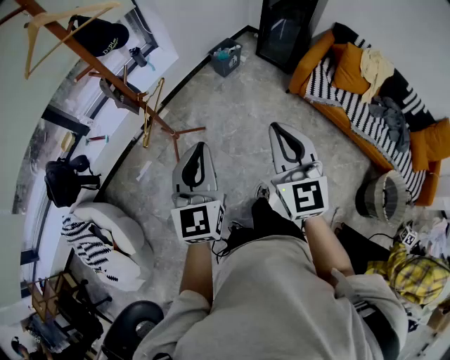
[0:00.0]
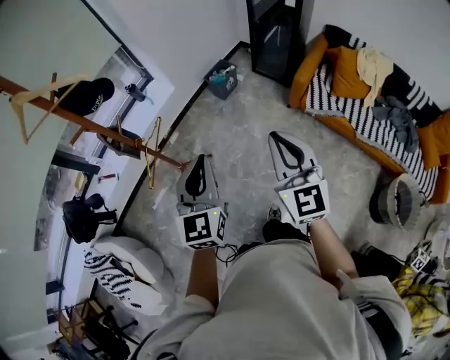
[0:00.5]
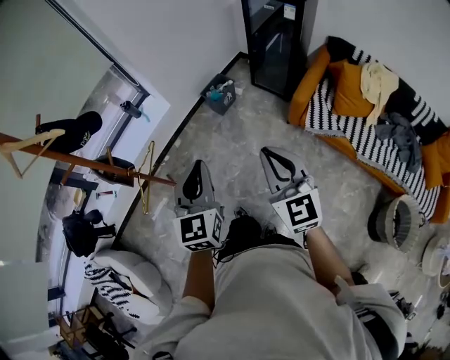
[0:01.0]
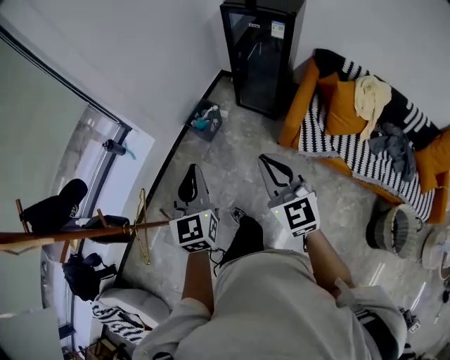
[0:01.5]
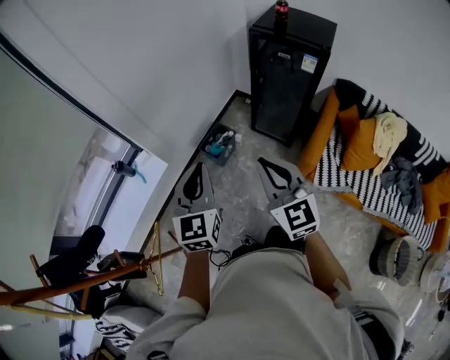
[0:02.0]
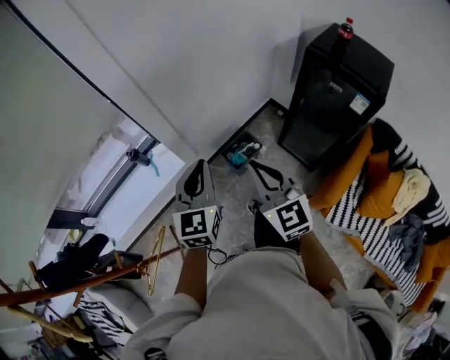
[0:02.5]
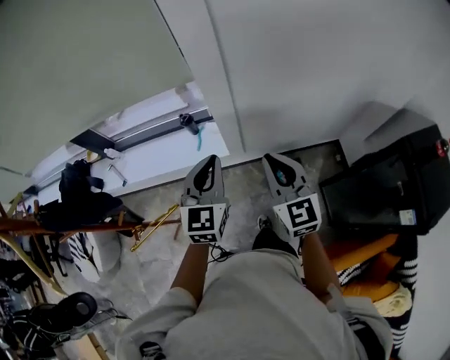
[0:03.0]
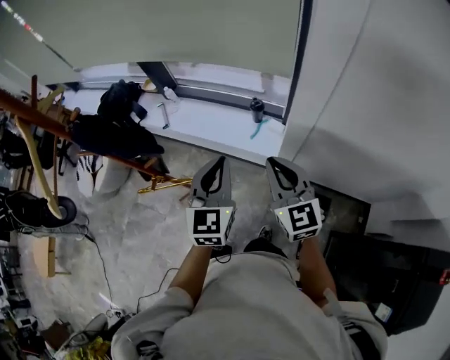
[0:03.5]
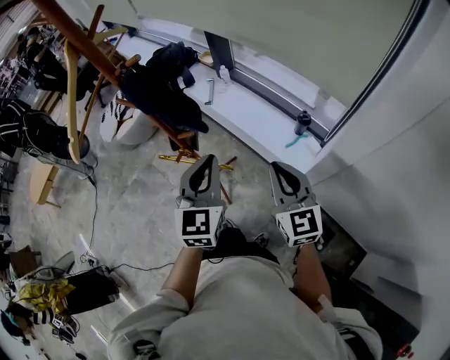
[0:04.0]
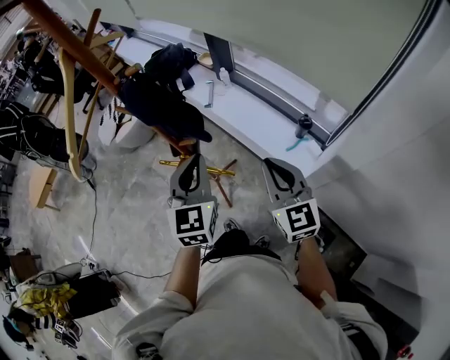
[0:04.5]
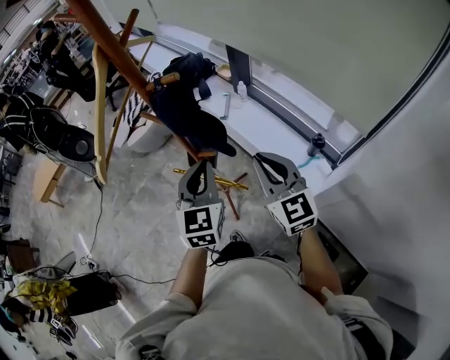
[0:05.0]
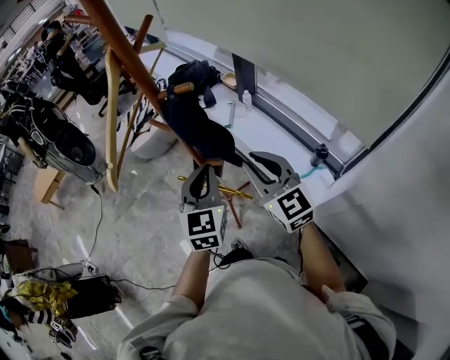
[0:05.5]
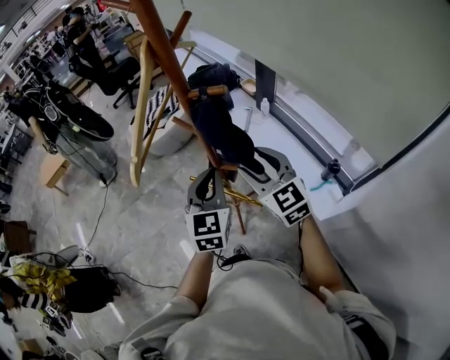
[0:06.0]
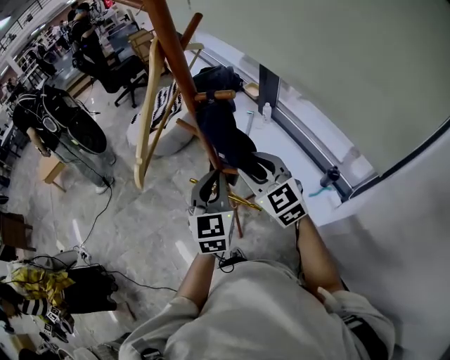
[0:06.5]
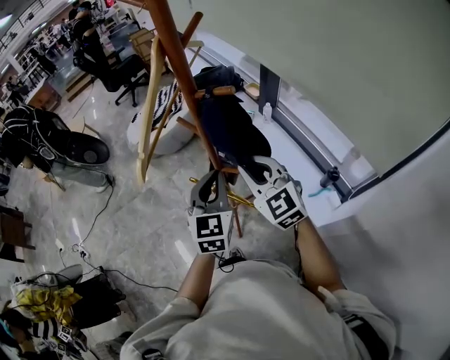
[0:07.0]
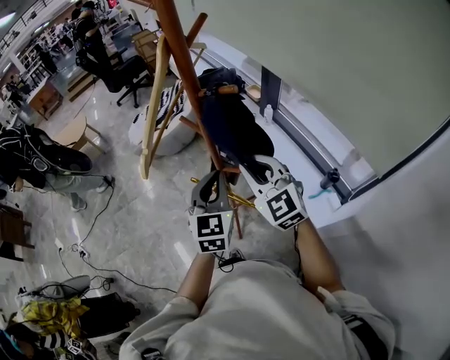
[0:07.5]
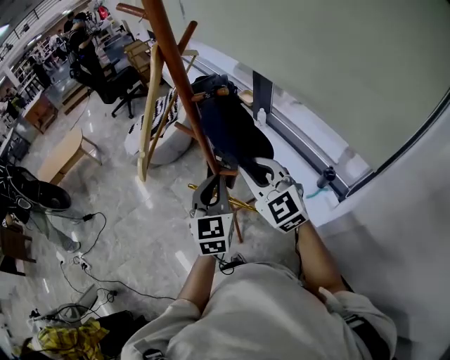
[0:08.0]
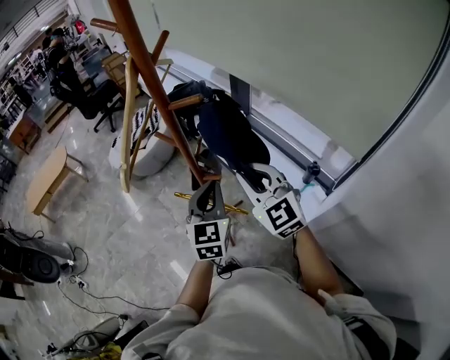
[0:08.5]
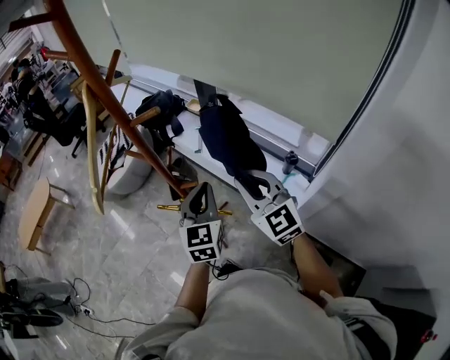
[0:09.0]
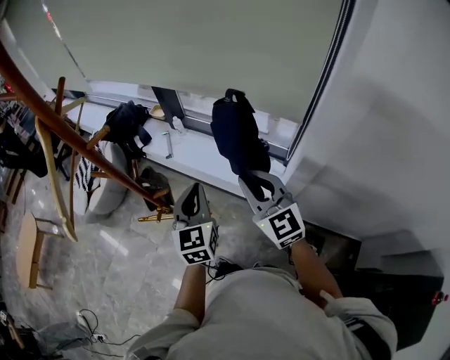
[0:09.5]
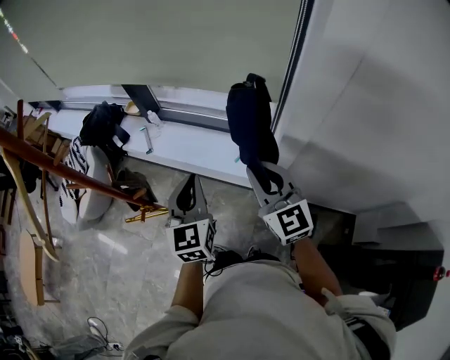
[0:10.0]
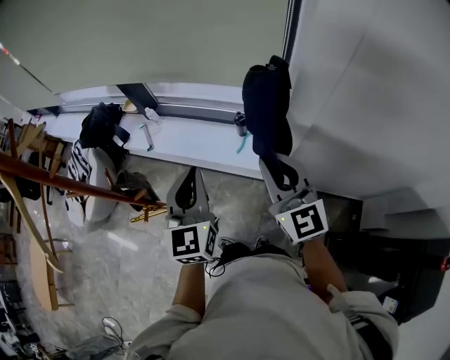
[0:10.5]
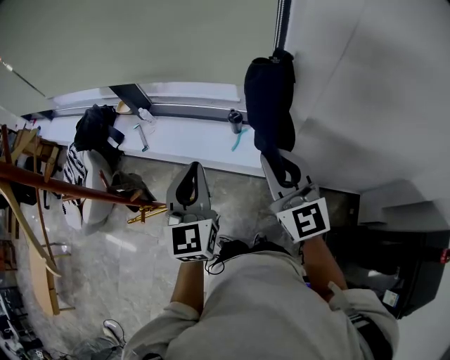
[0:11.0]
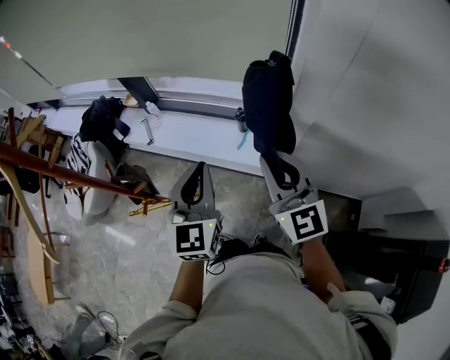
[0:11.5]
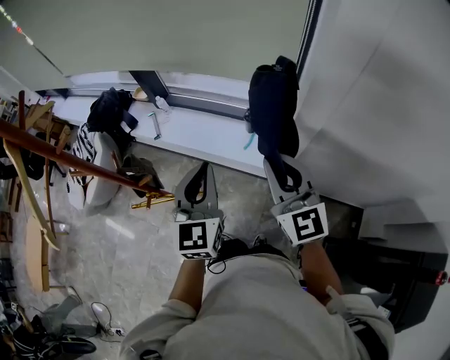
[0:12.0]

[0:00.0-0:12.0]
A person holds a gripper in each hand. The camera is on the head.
0:00.0 to 0:02.0: The pair of grippers is taken forward, some 60 cm.
0:02.0 to 0:04.0: The left gripper moves about 35 cm, and swivels roughly 90 degrees. Meanwhile the right gripper moves some 50 cm, and changes its angle by some 90 degrees.
0:04.0 to 0:06.0: The right gripper travels to the left, forward and upward by roughly 25 cm, changes its angle by about 30 degrees, and opens. Meanwhile the left gripper goes approximately 15 cm to the left and forward.
0:06.0 to 0:08.0: The right gripper closes up.
0:08.0 to 0:10.0: The right gripper moves roughly 30 cm, and changes its angle by approximately 50 degrees. The left gripper changes place by about 25 cm, and rotates about 30 degrees.
0:10.0 to 0:12.0: The grippers stay close to where they were, moving slightly.

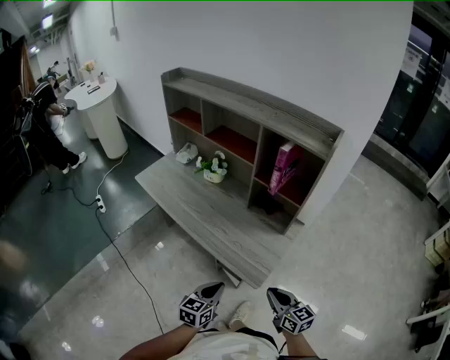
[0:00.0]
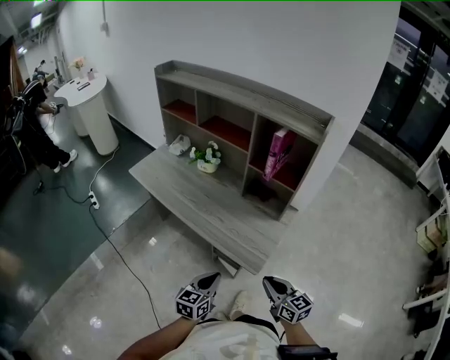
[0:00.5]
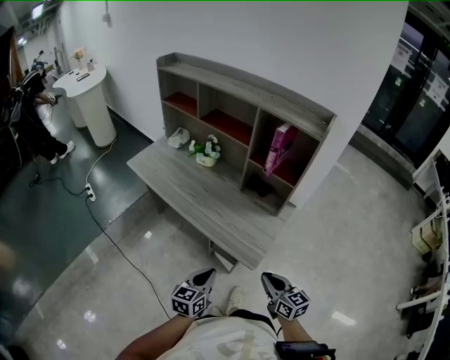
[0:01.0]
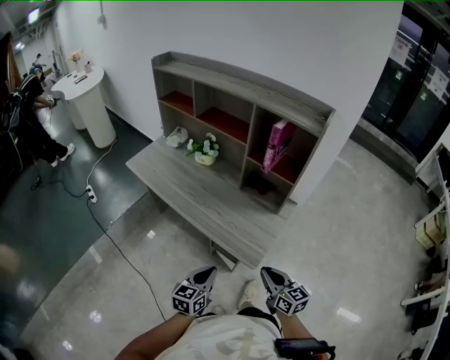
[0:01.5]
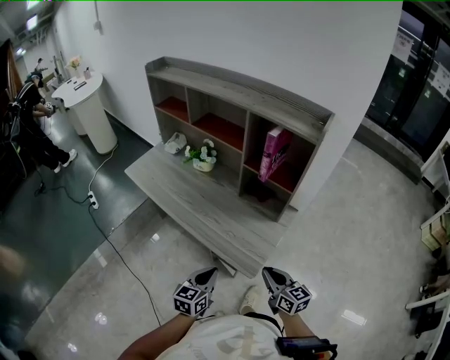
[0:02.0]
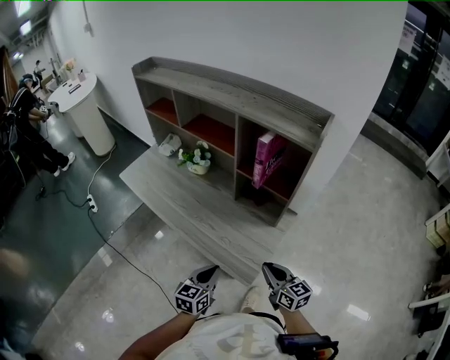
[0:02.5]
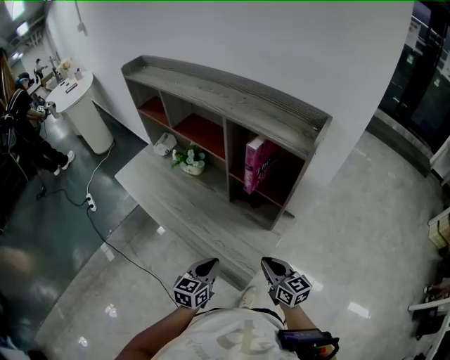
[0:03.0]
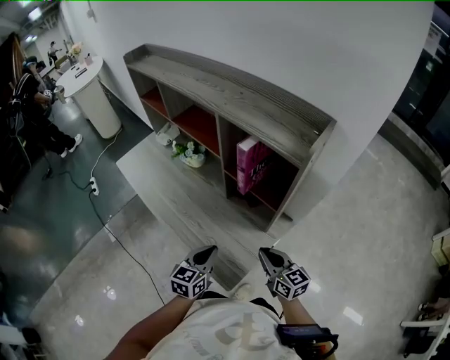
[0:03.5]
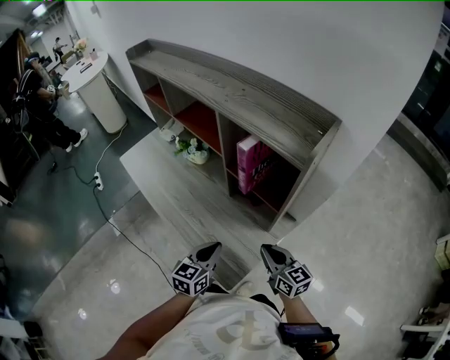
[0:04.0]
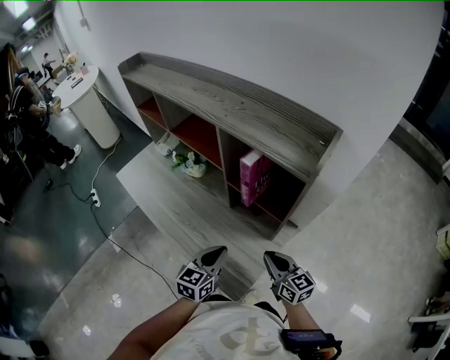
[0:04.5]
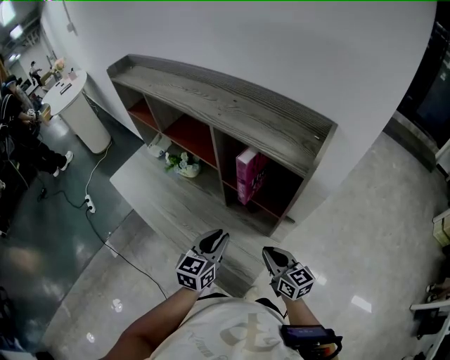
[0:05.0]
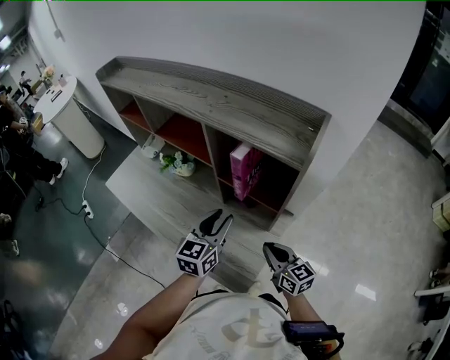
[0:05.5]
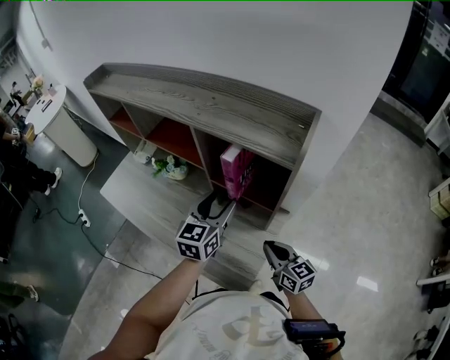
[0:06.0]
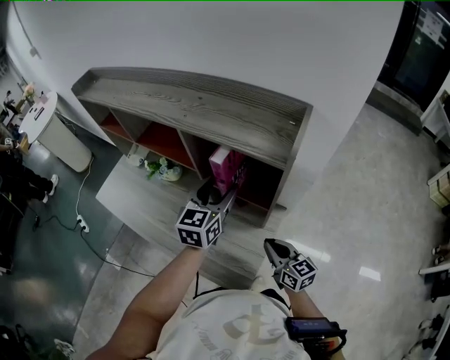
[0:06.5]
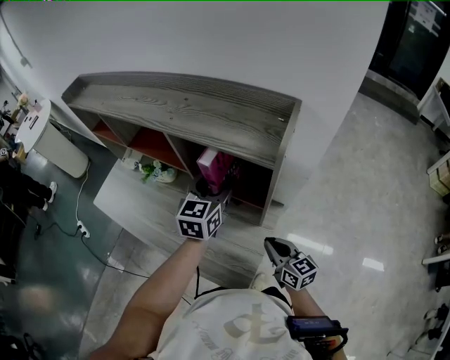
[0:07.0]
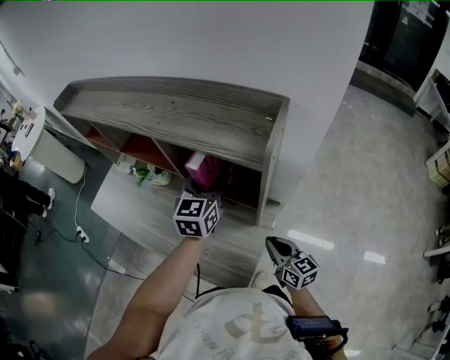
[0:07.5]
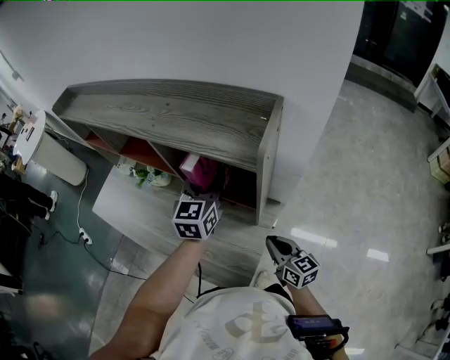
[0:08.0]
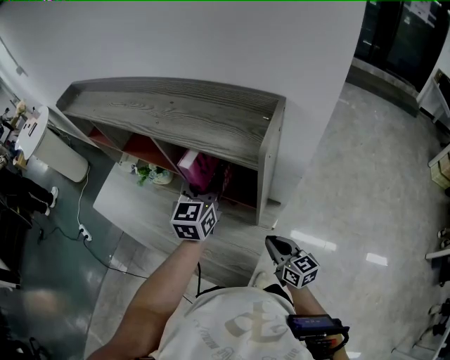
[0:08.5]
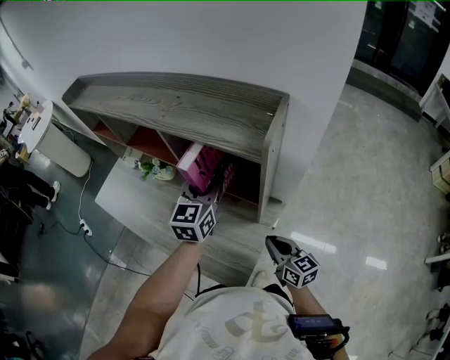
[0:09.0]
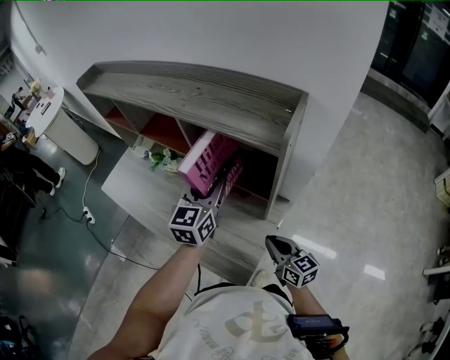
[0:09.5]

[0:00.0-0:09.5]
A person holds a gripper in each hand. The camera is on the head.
0:00.0 to 0:02.0: There are only small adjustments of the grippers.
0:02.0 to 0:04.0: The two grippers go roughly 20 cm forward and to the right.
0:04.0 to 0:05.5: The left gripper shifts about 15 cm forward and upward, and opens.
0:05.5 to 0:07.5: The right gripper is displaced to the right by roughly 5 cm, while the left gripper travels forward and to the right by approximately 15 cm.
0:07.5 to 0:09.5: The left gripper shifts some 10 cm to the left and backward.

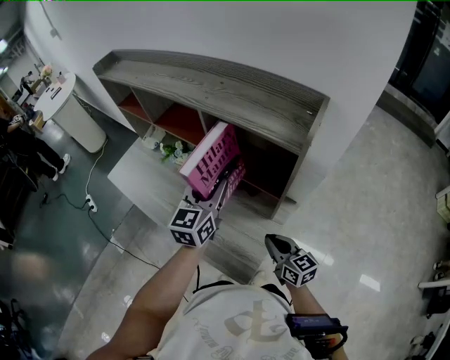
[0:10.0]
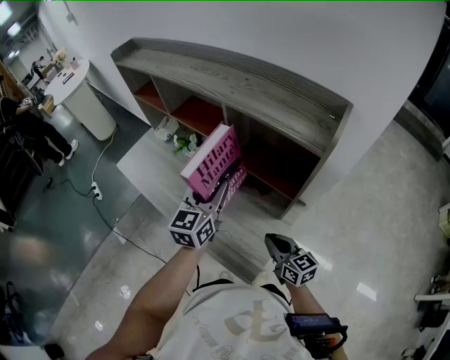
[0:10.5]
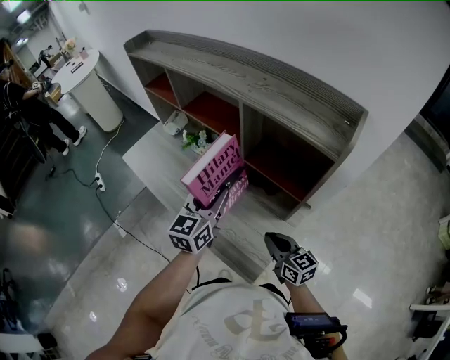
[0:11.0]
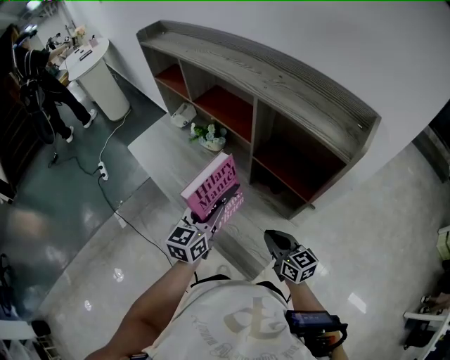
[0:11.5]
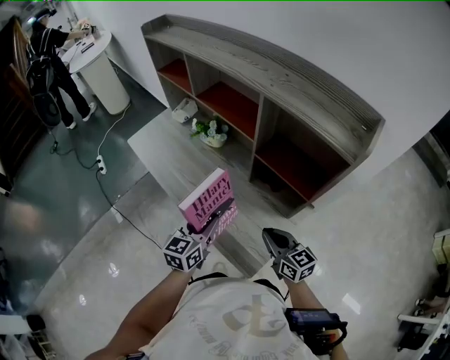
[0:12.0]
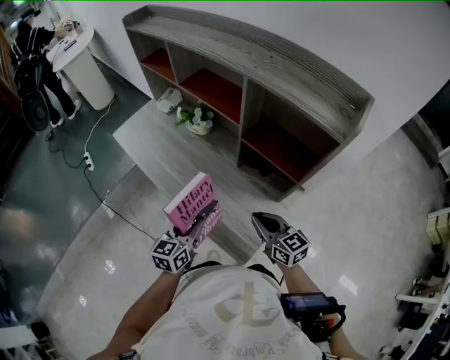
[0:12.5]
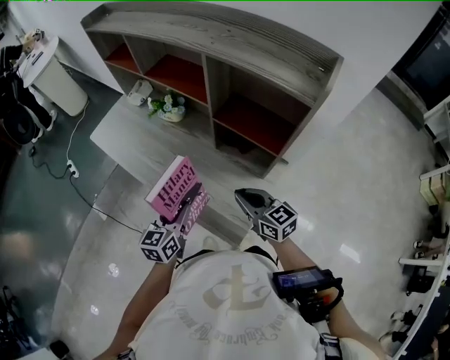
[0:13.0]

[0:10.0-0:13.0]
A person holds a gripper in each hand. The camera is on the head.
0:10.0 to 0:11.5: The left gripper moves to the left, downward and backward, approximately 15 cm, while the right gripper goes roughly 10 cm to the left.
0:11.5 to 0:13.0: The left gripper heads downward and backward, covering roughly 10 cm.

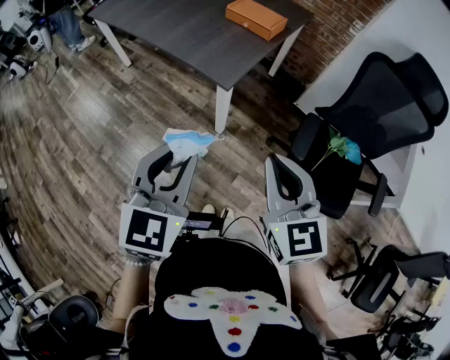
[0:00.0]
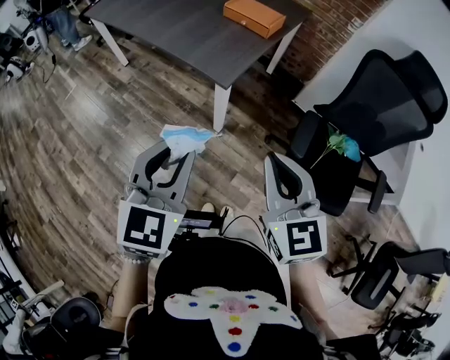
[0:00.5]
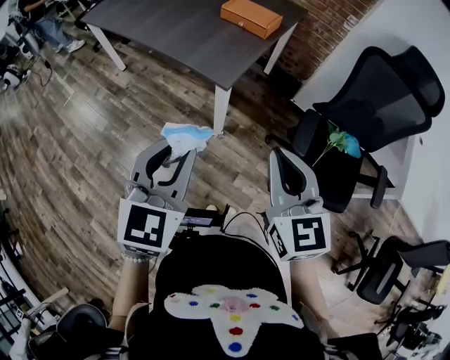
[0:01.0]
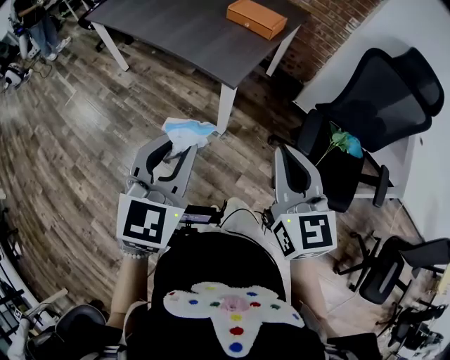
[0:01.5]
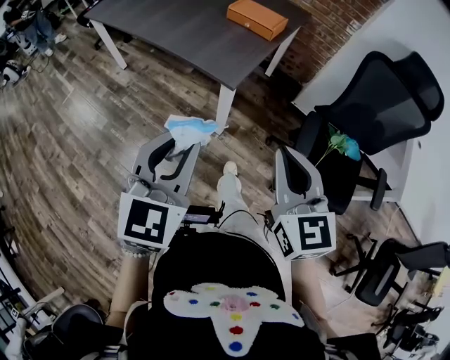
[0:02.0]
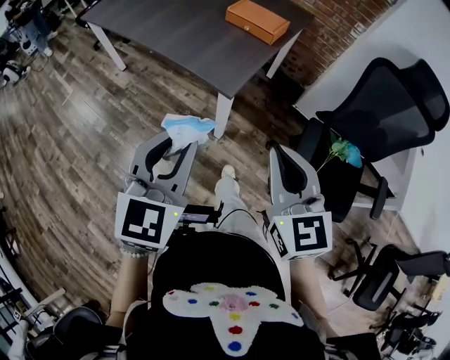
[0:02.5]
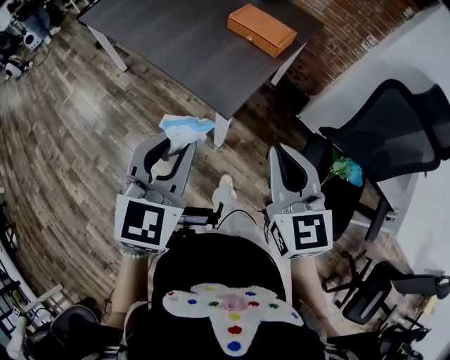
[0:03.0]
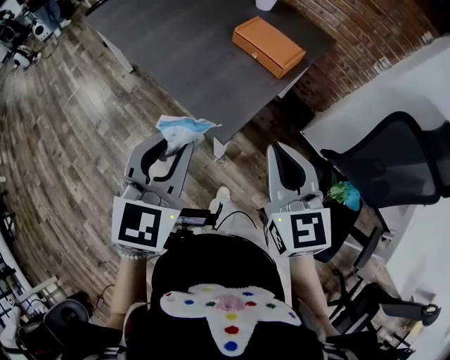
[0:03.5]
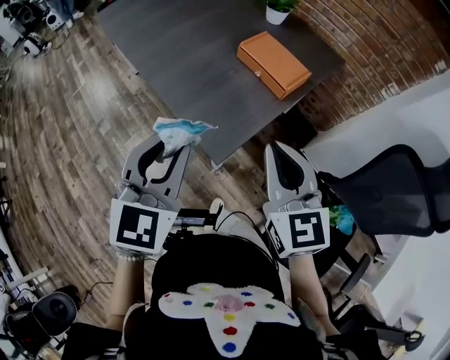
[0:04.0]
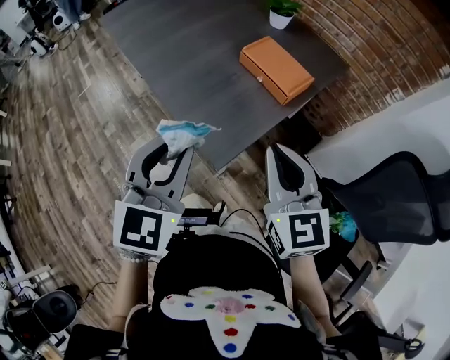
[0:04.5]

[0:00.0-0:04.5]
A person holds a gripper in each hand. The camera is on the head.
0:00.0 to 0:02.0: The grippers stay close to where they were, moving slightly.
0:02.0 to 0:04.5: Both grippers travel together forward, approximately 30 cm.
